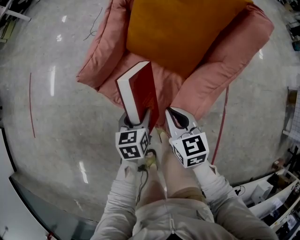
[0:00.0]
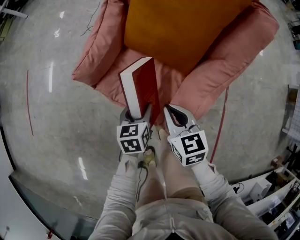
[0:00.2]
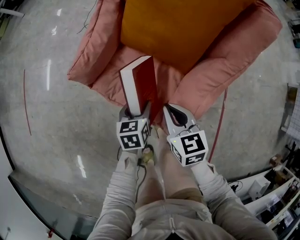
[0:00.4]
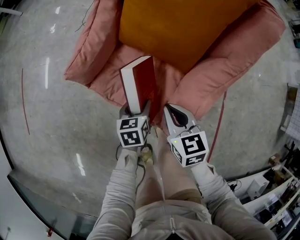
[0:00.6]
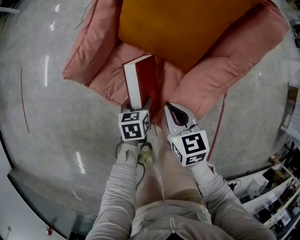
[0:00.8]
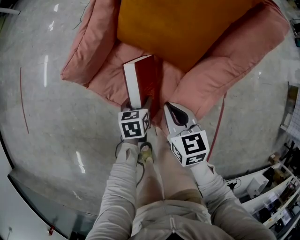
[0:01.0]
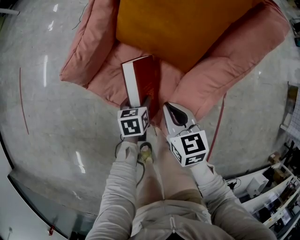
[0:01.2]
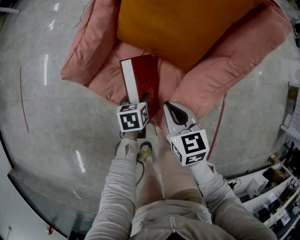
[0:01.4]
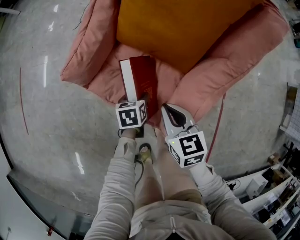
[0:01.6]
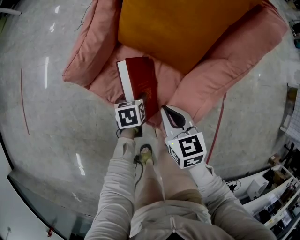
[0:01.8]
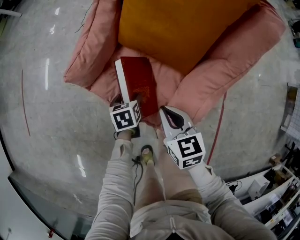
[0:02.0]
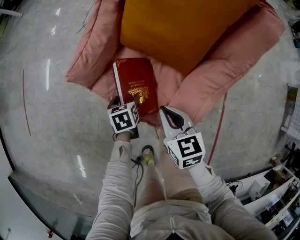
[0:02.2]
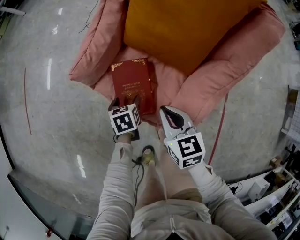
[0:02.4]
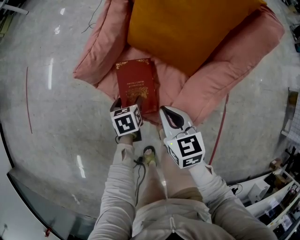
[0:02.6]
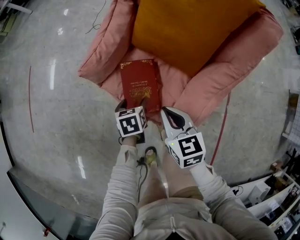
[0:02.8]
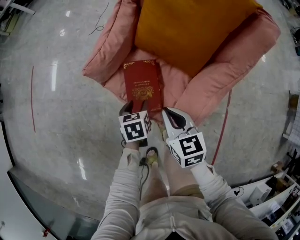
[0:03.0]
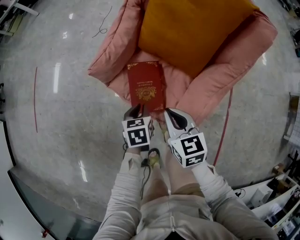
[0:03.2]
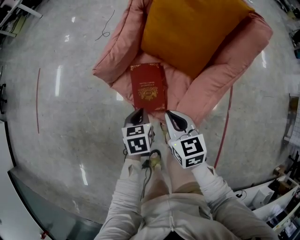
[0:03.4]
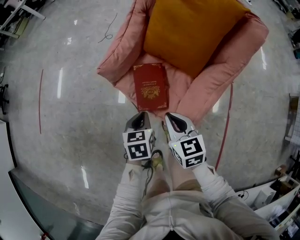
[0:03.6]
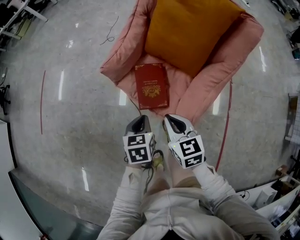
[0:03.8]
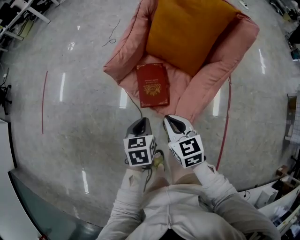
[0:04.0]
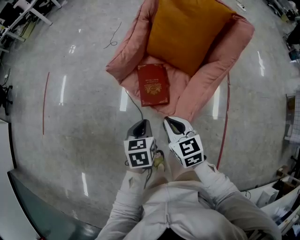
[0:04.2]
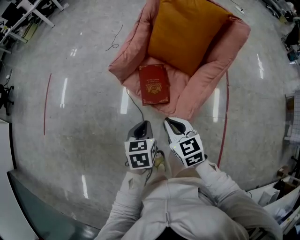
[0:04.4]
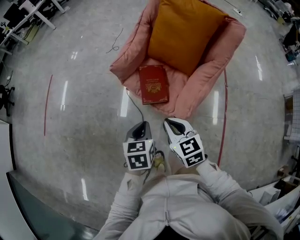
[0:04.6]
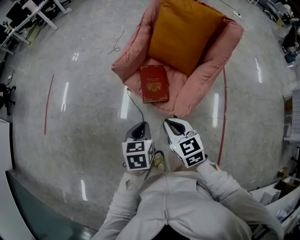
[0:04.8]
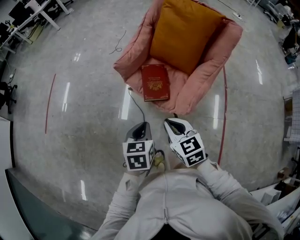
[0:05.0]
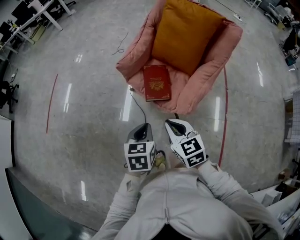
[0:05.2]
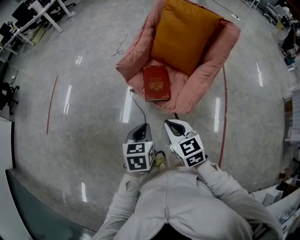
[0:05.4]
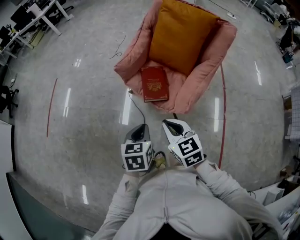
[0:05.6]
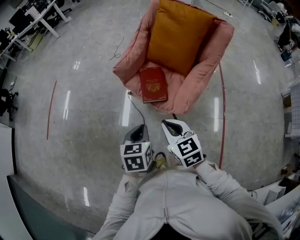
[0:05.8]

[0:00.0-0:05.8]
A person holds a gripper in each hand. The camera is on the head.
0:00.0 to 0:01.4: The right gripper moves downward, some 5 cm. The left gripper heads downward, covering about 15 cm.
0:01.4 to 0:02.8: The left gripper moves to the left and upward, about 10 cm, while the right gripper heads to the left, covering roughly 5 cm.
0:02.8 to 0:04.4: The right gripper travels backward, upward and to the left by some 20 cm; the left gripper shifts roughly 30 cm upward and backward, and closes.
0:04.4 to 0:05.8: The two grippers go approximately 10 cm backward and upward.

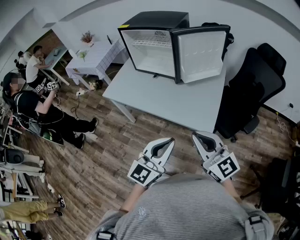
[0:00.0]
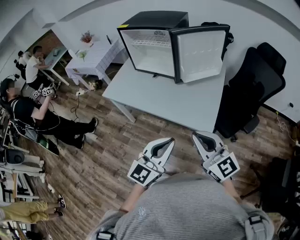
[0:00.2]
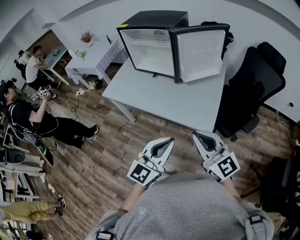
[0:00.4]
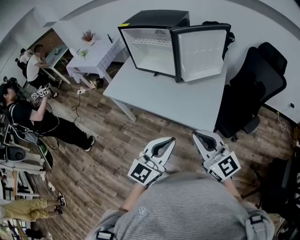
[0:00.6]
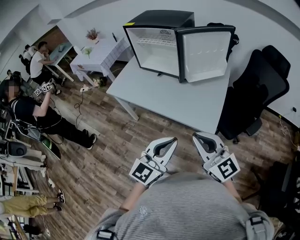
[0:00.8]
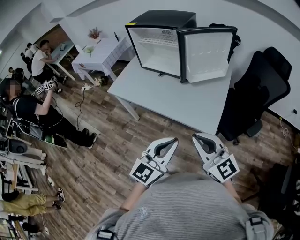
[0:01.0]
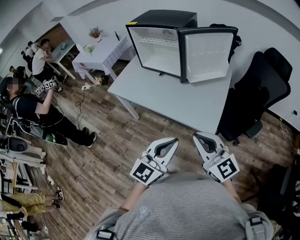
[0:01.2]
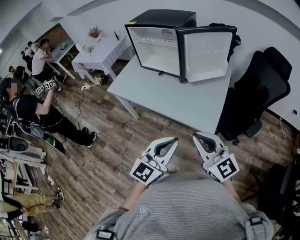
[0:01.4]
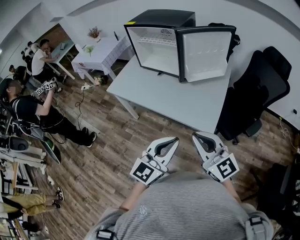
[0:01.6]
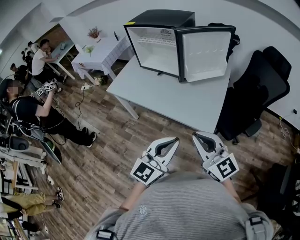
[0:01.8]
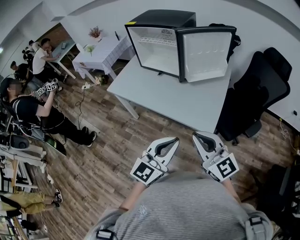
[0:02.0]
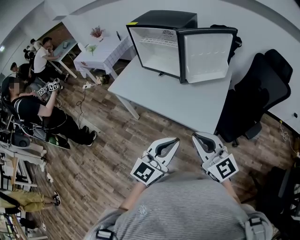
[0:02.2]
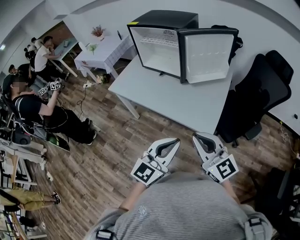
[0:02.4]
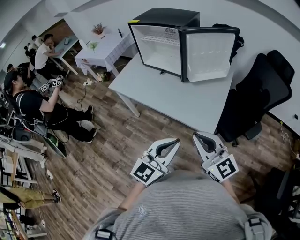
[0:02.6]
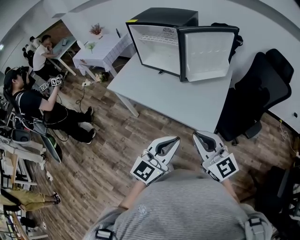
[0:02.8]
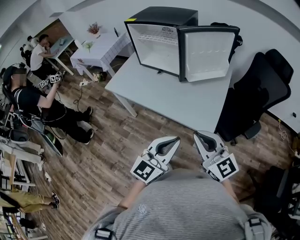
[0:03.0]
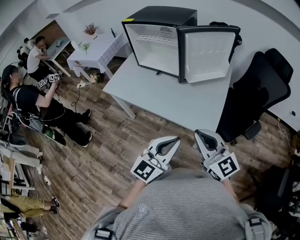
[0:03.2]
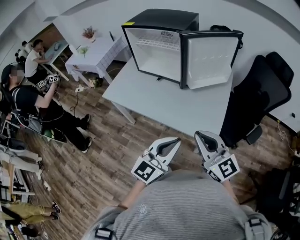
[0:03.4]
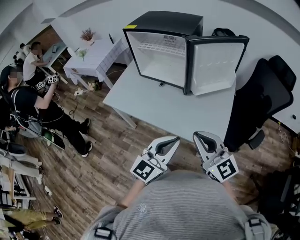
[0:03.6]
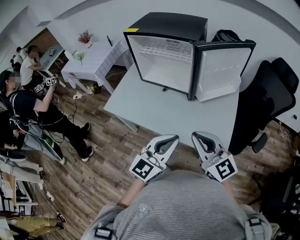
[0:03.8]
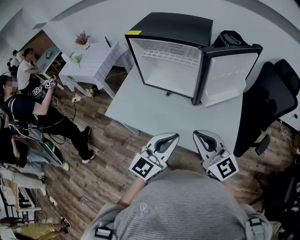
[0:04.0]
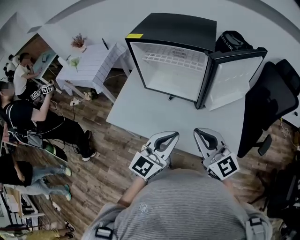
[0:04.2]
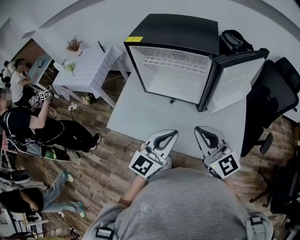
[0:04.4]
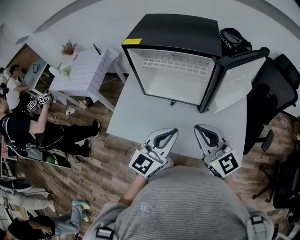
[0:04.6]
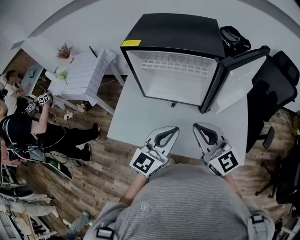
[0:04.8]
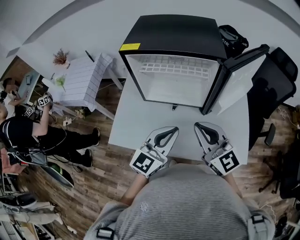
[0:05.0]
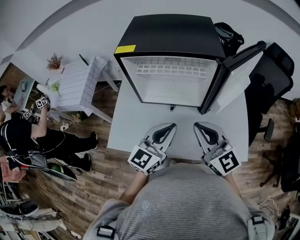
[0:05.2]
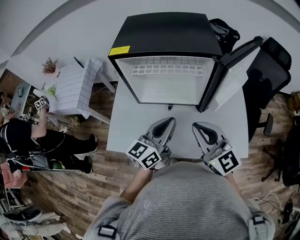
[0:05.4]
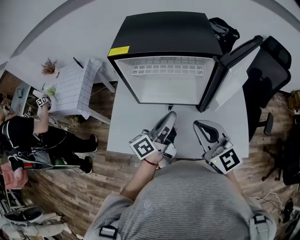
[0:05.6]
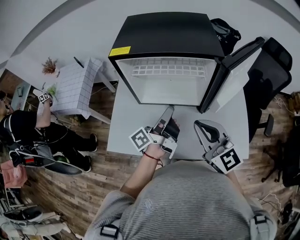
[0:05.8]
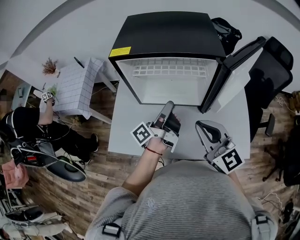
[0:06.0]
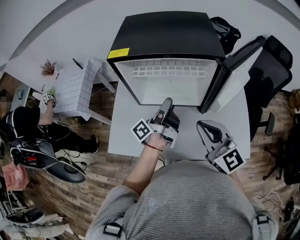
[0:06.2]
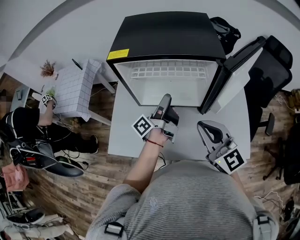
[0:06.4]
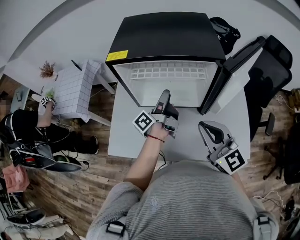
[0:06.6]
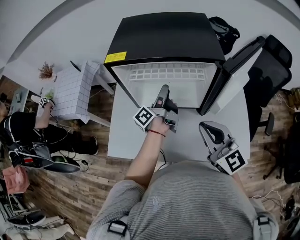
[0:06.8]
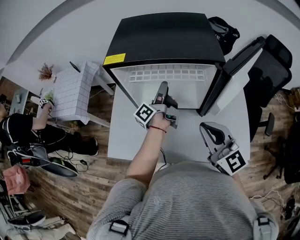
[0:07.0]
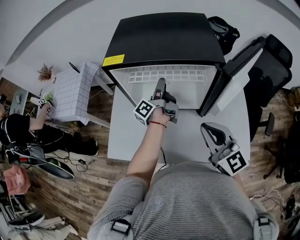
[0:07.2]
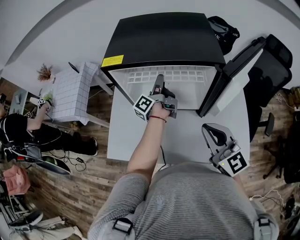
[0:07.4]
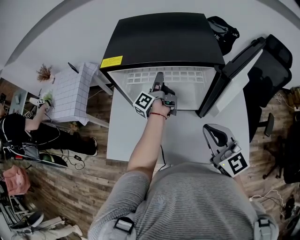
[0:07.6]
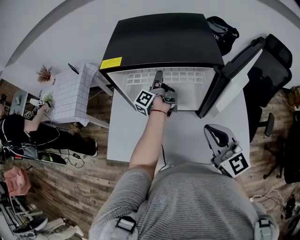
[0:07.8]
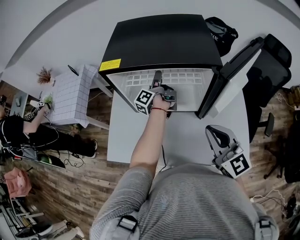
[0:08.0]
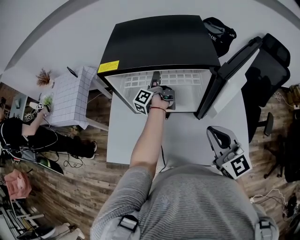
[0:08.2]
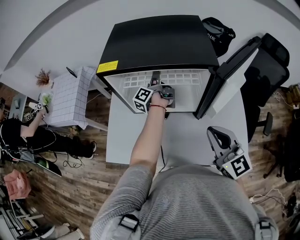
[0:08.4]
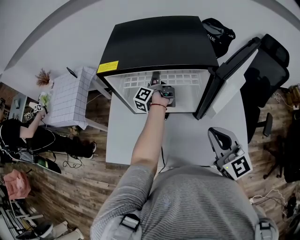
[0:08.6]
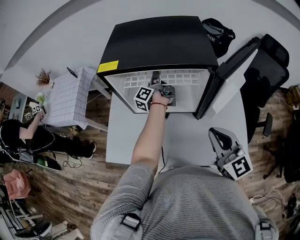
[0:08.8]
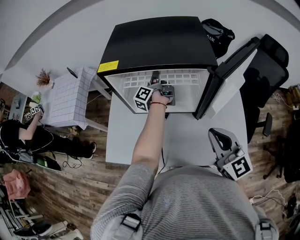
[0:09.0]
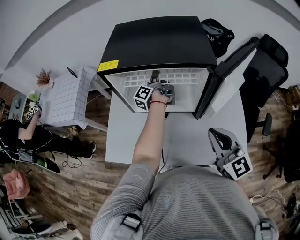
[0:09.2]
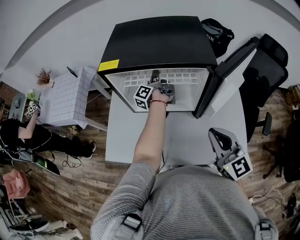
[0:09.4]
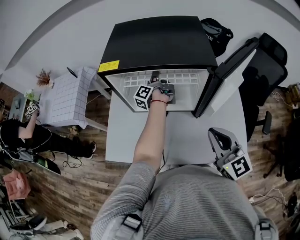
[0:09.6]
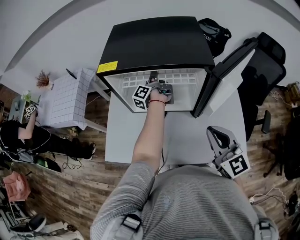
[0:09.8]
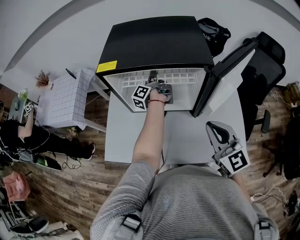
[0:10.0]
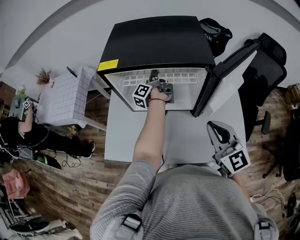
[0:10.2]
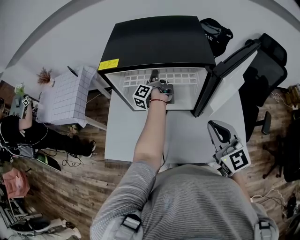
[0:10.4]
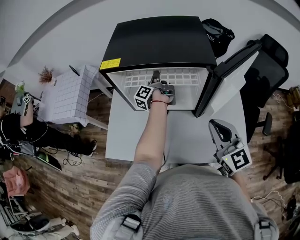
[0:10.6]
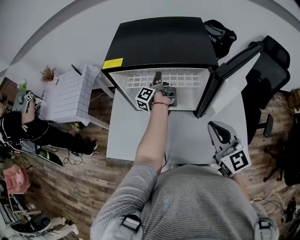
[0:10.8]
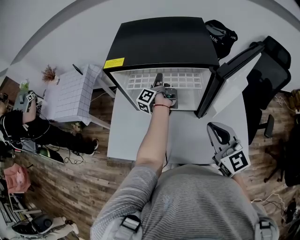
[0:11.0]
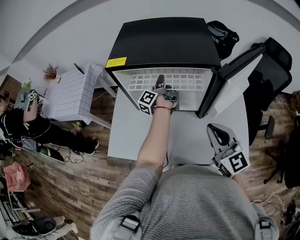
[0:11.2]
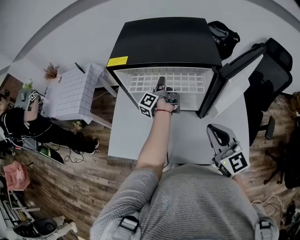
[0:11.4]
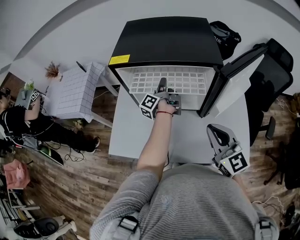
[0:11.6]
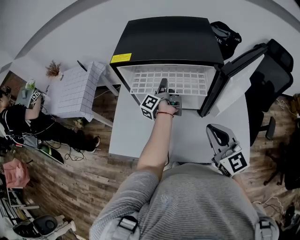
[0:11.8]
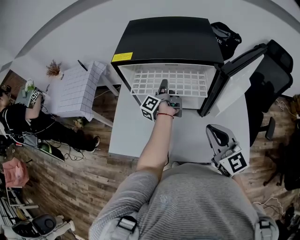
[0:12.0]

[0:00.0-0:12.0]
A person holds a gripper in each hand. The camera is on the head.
0:00.0 to 0:03.0: The grippers move only a little.
0:03.0 to 0:04.4: Both grippers travel together forward and to the left, some 35 cm.
0:04.4 to 0:06.0: The left gripper travels forward by some 20 cm, and twists roughly 90 degrees counterclockwise, seen from behind, while the right gripper heads forward and to the left, covering approximately 10 cm.
0:06.0 to 0:07.6: The right gripper moves approximately 5 cm. The left gripper heads forward, covering about 20 cm, and opens its fingers.
0:07.6 to 0:09.0: The left gripper closes up.
0:09.0 to 0:10.4: The grippers make only small movements.
0:10.4 to 0:12.0: The left gripper heads backward, covering about 5 cm.

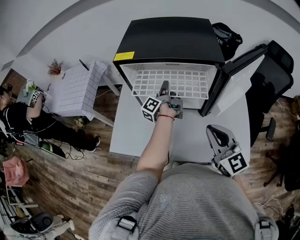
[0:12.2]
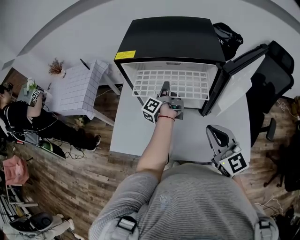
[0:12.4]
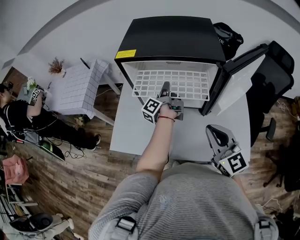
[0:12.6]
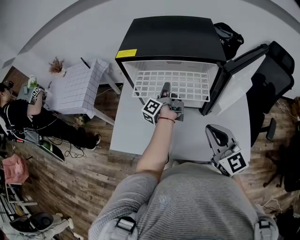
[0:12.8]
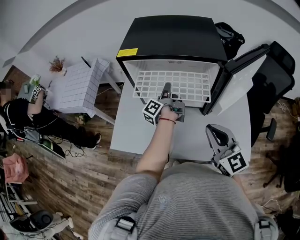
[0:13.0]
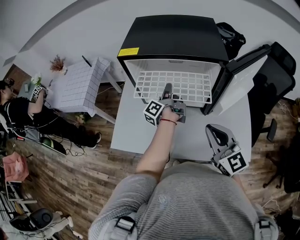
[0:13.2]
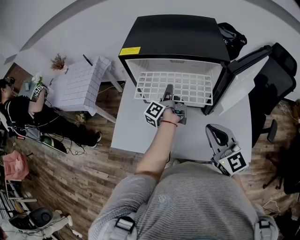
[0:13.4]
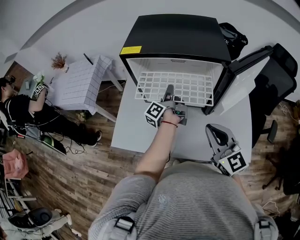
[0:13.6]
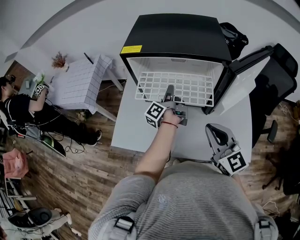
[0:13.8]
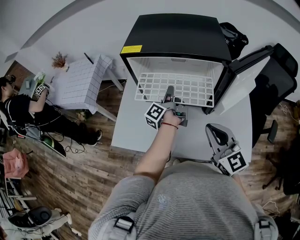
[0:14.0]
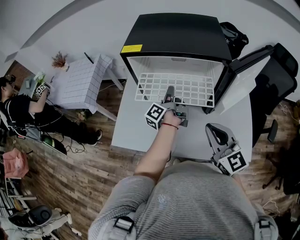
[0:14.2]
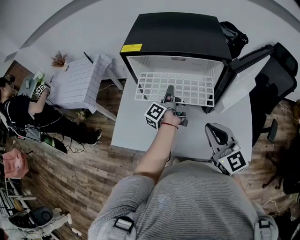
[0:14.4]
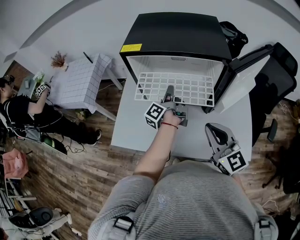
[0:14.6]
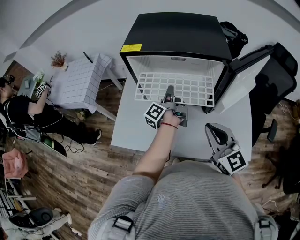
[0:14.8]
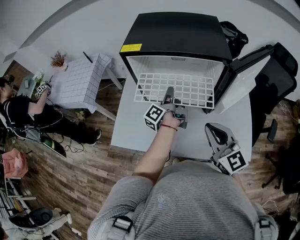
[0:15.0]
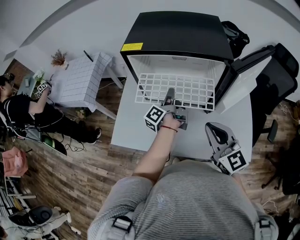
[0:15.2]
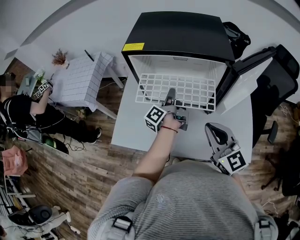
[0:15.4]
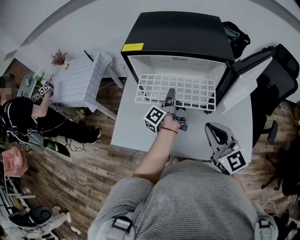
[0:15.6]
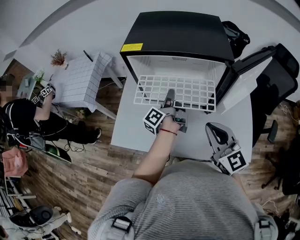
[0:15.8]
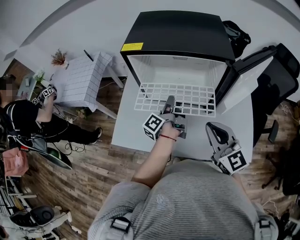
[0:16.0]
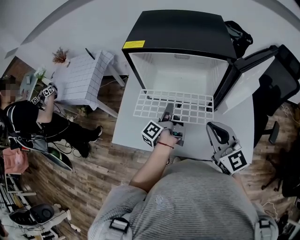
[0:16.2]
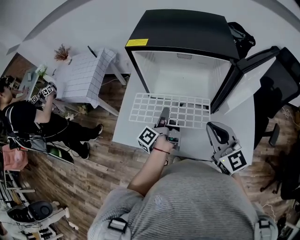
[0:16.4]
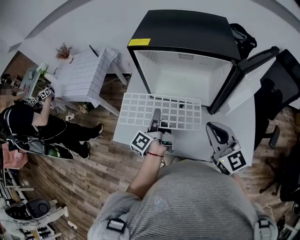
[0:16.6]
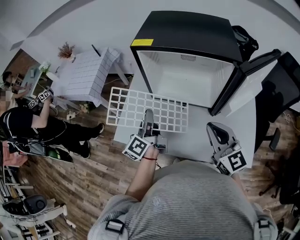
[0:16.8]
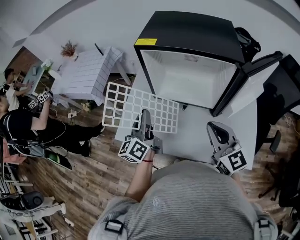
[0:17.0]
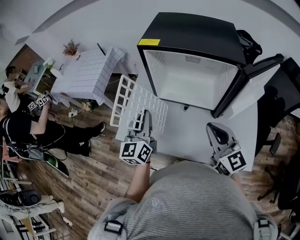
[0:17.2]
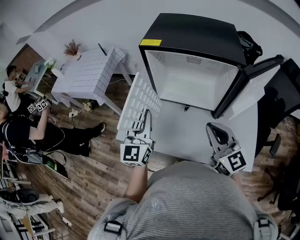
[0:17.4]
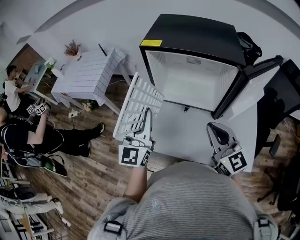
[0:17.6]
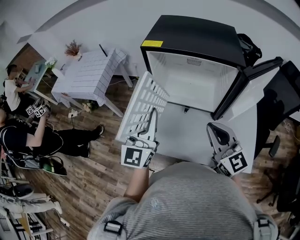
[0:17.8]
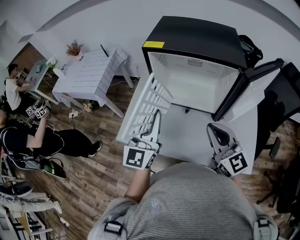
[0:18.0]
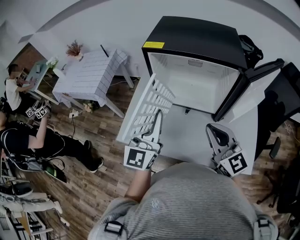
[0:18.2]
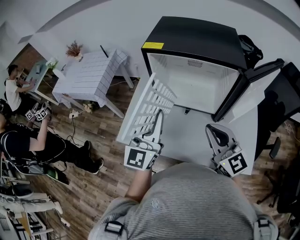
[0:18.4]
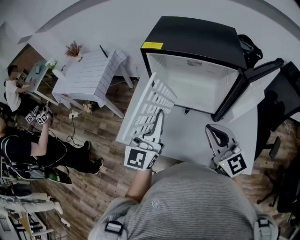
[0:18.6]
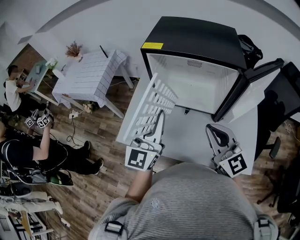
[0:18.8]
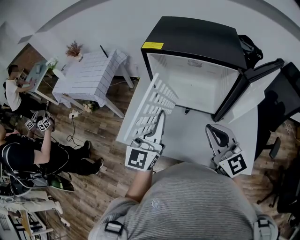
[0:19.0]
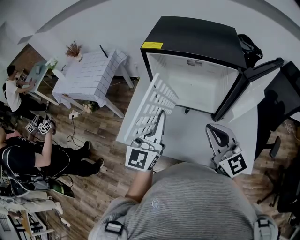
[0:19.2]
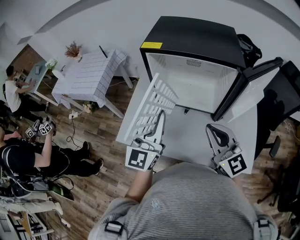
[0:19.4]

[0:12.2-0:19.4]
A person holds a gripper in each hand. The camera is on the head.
0:12.2 to 0:13.6: The grippers move only a little.
0:13.6 to 0:15.0: The grippers make only small movements.
0:15.0 to 0:16.6: The left gripper moves to the left and backward, roughly 15 cm.
0:16.6 to 0:18.0: The left gripper heads upward, covering approximately 15 cm, and rolls clockwise, seen from behind, by approximately 80 degrees.
0:18.0 to 0:19.4: The grippers make only small movements.
